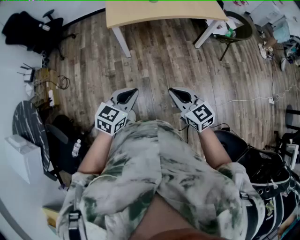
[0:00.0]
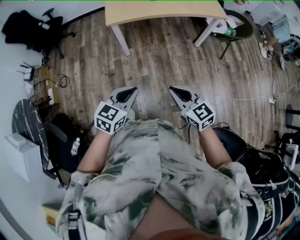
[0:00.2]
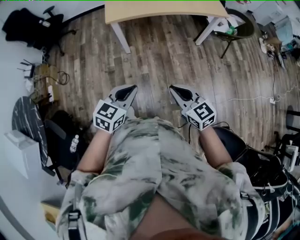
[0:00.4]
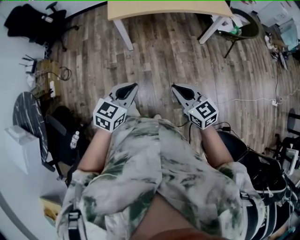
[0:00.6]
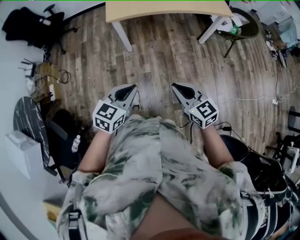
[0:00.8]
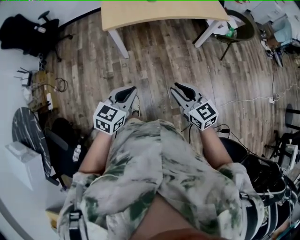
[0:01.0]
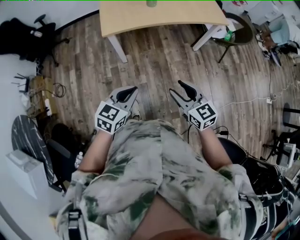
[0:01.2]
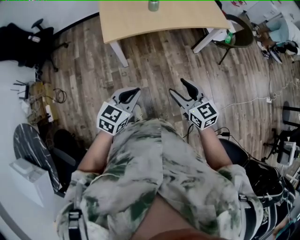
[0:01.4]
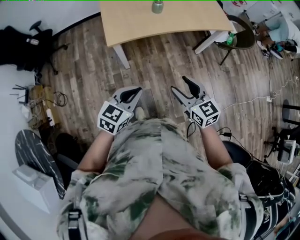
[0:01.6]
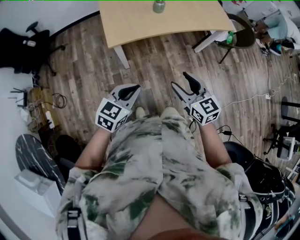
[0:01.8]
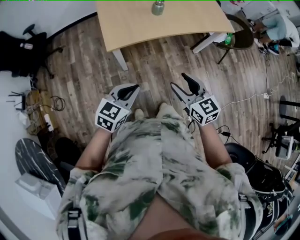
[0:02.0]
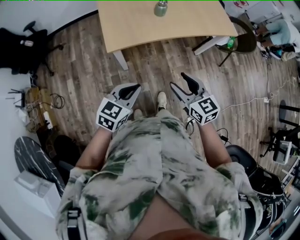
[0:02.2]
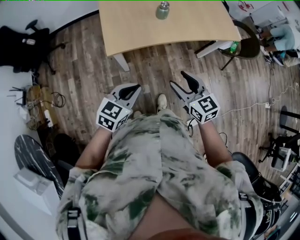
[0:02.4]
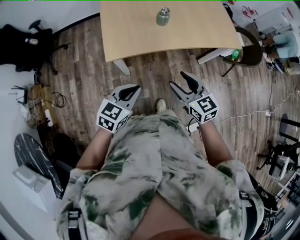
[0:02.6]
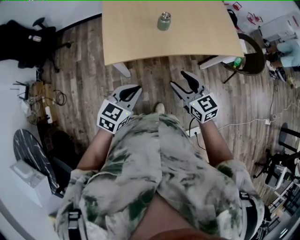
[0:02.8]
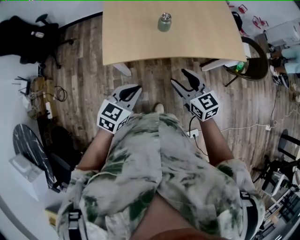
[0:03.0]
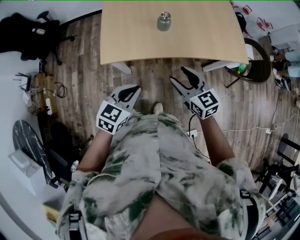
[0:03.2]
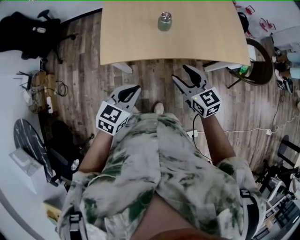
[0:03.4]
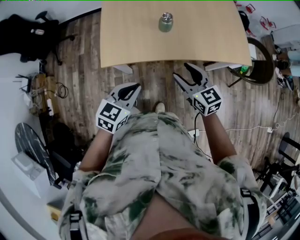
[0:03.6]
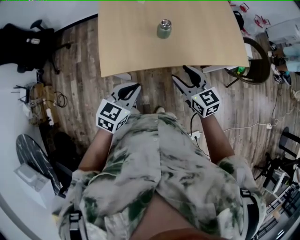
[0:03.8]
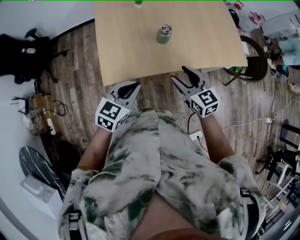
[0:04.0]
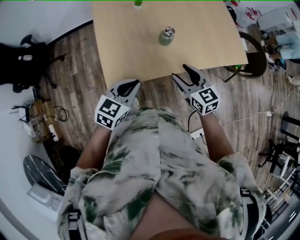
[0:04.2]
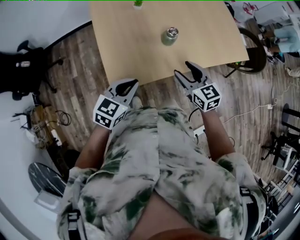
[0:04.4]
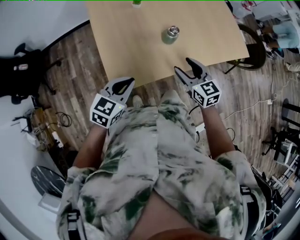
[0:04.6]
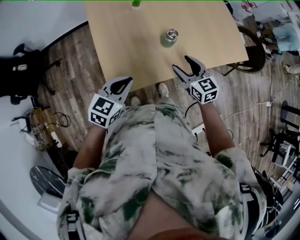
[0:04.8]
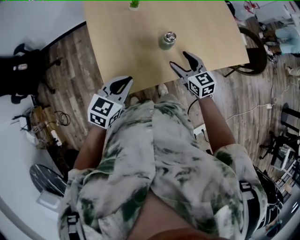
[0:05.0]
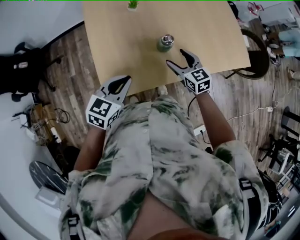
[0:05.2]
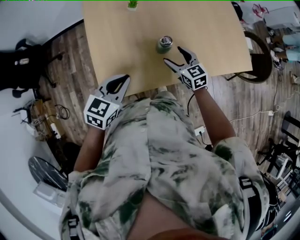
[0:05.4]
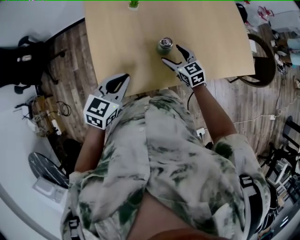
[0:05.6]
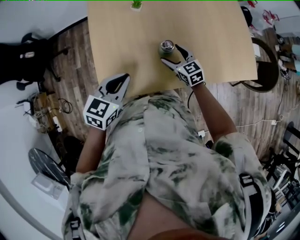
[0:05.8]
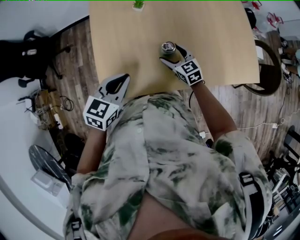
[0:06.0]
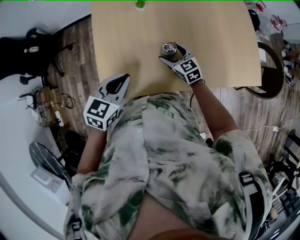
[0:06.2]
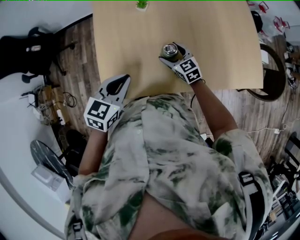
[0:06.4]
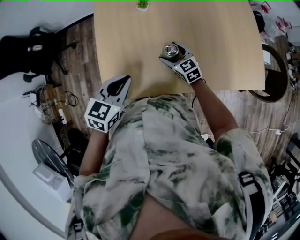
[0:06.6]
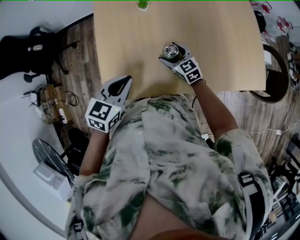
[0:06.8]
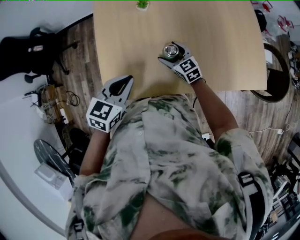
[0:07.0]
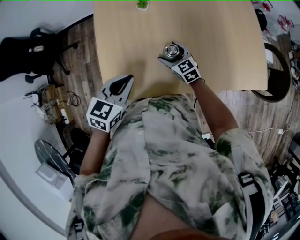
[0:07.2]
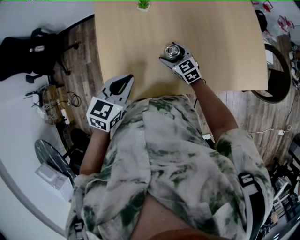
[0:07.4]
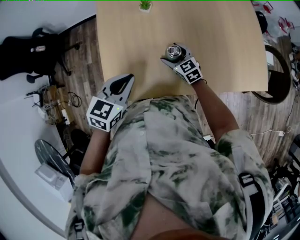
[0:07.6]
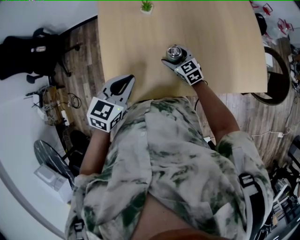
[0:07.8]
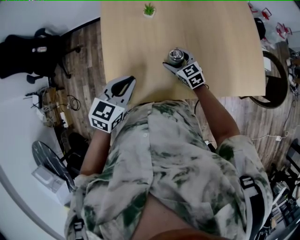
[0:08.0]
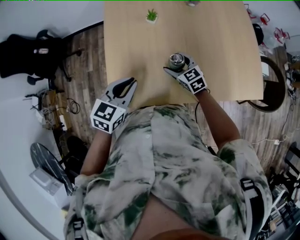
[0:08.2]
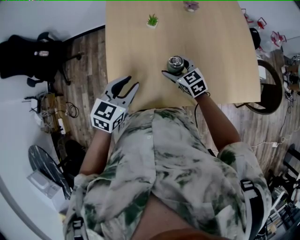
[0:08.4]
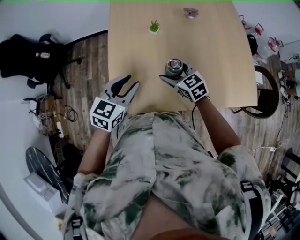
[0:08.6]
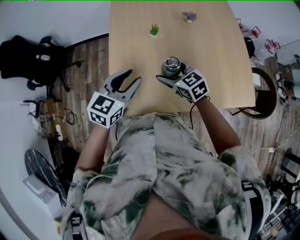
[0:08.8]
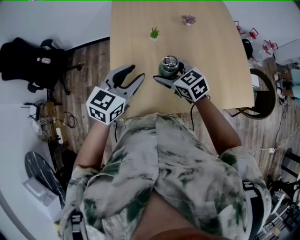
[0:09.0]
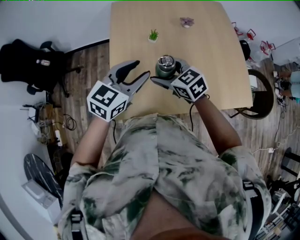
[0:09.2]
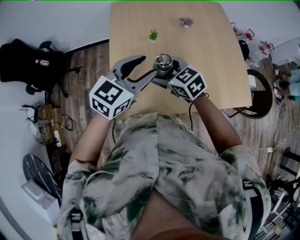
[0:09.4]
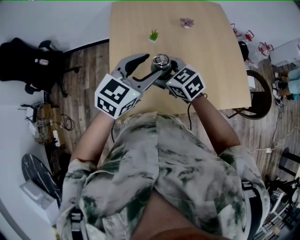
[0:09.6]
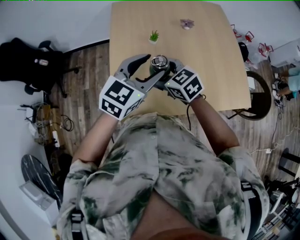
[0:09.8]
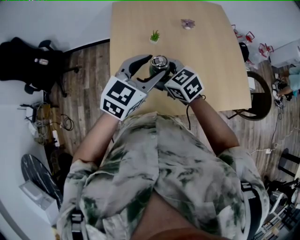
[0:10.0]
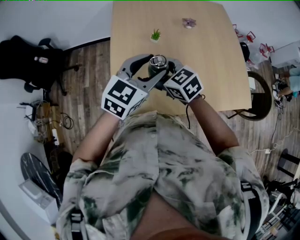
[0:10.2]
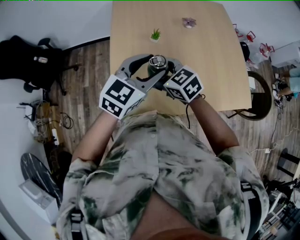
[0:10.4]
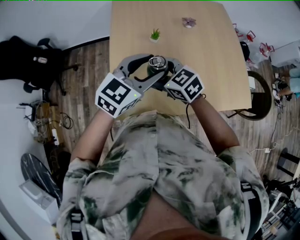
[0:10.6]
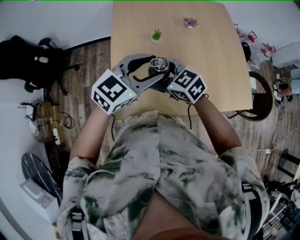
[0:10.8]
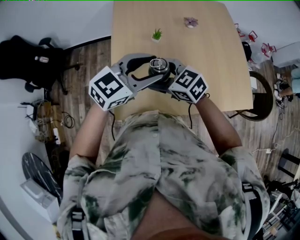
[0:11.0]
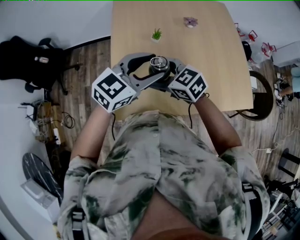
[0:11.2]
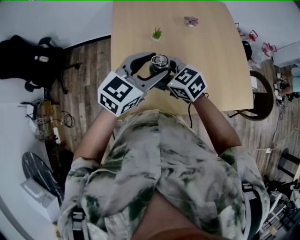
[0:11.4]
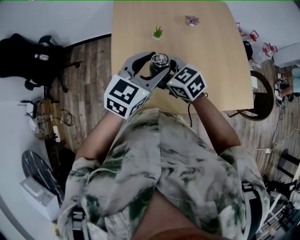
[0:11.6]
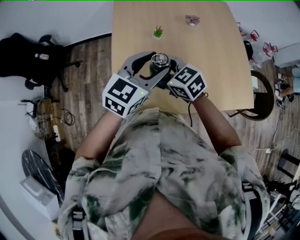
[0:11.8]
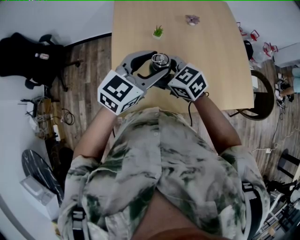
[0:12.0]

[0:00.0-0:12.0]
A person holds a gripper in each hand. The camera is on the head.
0:00.0 to 0:01.6: The two grippers go about 20 cm forward. The right gripper opens its fingers.
0:01.6 to 0:03.0: The grippers both shift forward by roughly 20 cm.
0:03.0 to 0:04.4: Both grippers travel together forward and to the left, some 20 cm.
0:04.4 to 0:06.0: The left gripper travels forward and to the right by approximately 15 cm, while the right gripper shifts some 25 cm forward and downward.
0:06.0 to 0:07.6: There are only small adjustments of the grippers.
0:07.6 to 0:09.0: The right gripper is displaced upward by approximately 20 cm; the left gripper moves upward, some 10 cm, and opens its fingers.
0:09.0 to 0:10.4: The right gripper is displaced to the left by some 5 cm, while the left gripper moves some 5 cm.
0:10.4 to 0:12.0: The grippers move only a little.

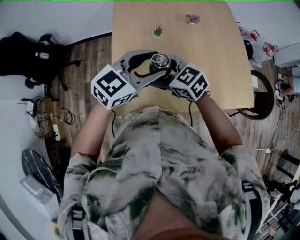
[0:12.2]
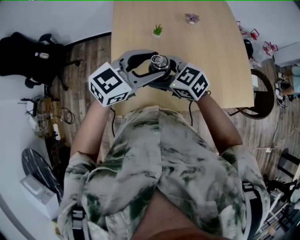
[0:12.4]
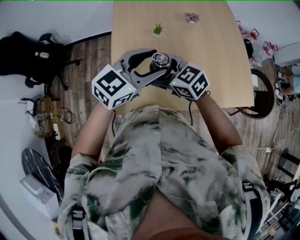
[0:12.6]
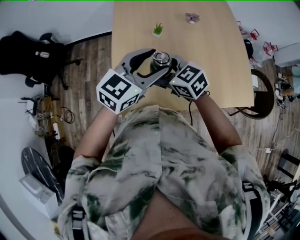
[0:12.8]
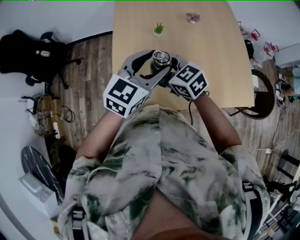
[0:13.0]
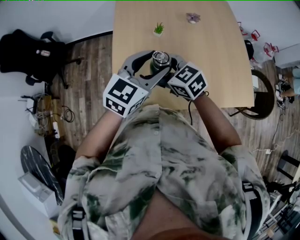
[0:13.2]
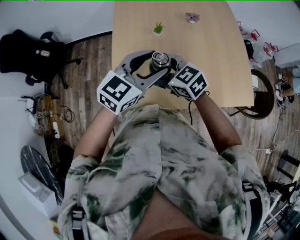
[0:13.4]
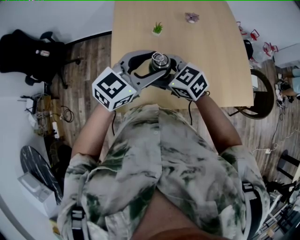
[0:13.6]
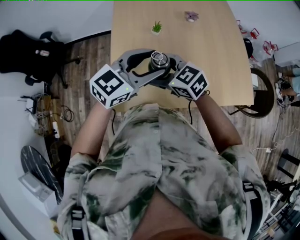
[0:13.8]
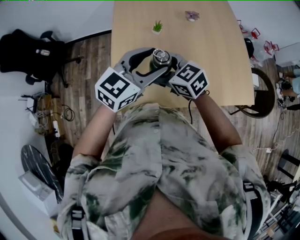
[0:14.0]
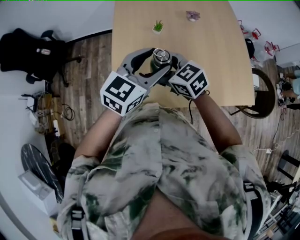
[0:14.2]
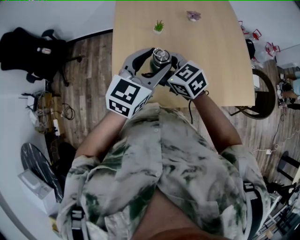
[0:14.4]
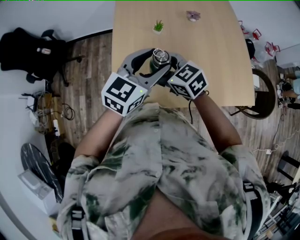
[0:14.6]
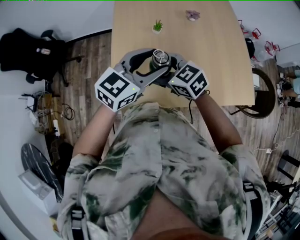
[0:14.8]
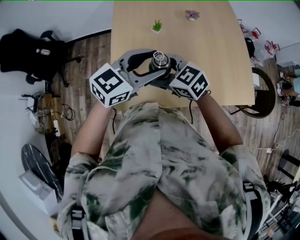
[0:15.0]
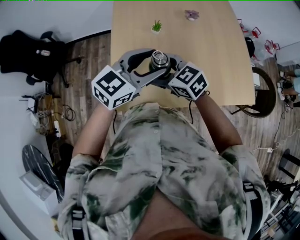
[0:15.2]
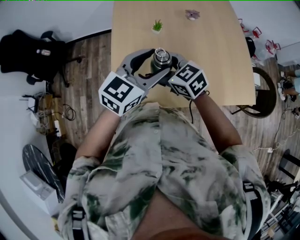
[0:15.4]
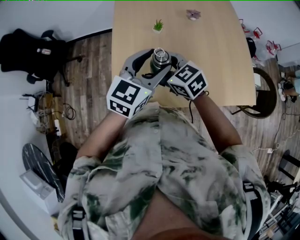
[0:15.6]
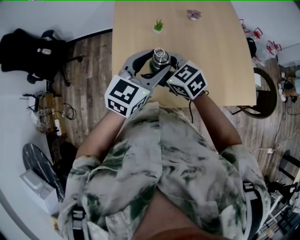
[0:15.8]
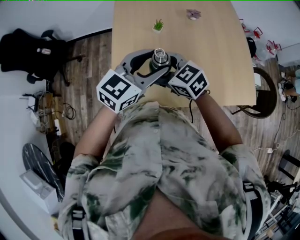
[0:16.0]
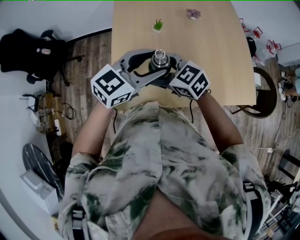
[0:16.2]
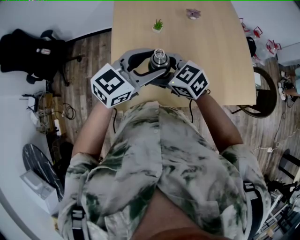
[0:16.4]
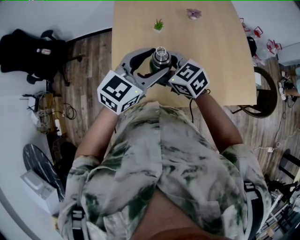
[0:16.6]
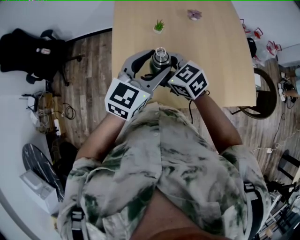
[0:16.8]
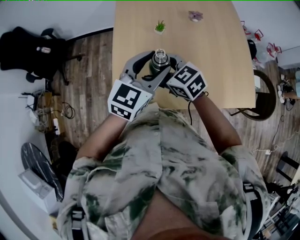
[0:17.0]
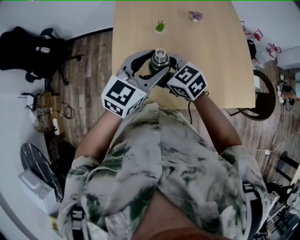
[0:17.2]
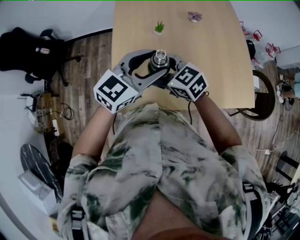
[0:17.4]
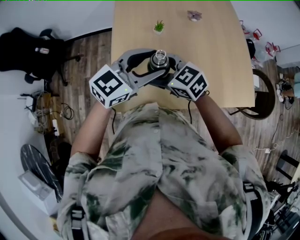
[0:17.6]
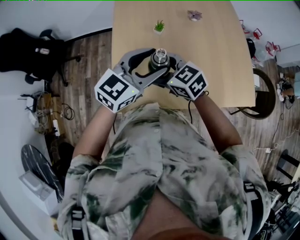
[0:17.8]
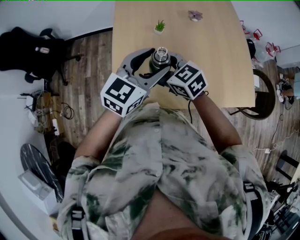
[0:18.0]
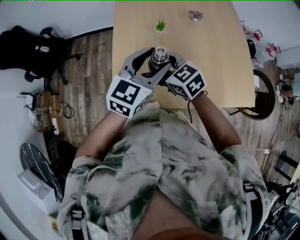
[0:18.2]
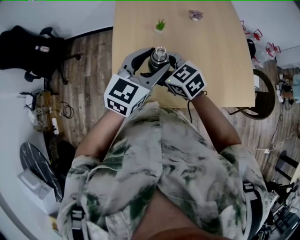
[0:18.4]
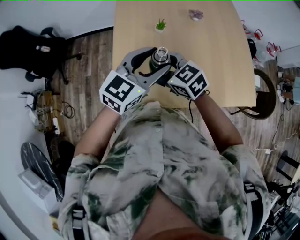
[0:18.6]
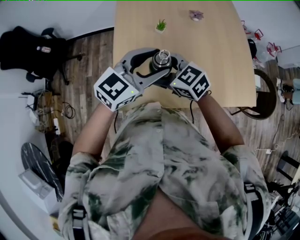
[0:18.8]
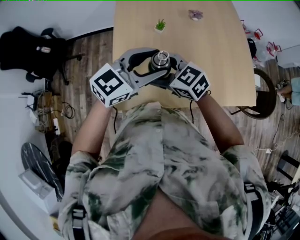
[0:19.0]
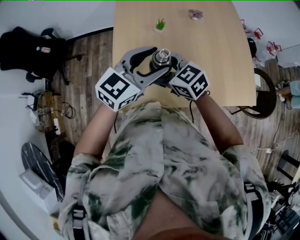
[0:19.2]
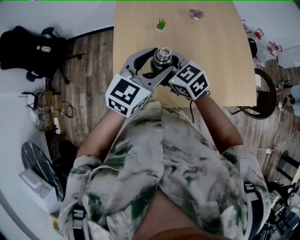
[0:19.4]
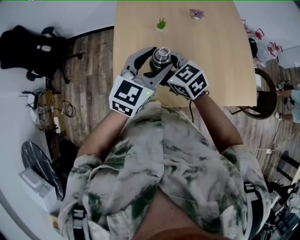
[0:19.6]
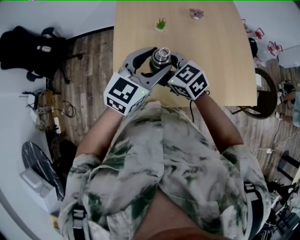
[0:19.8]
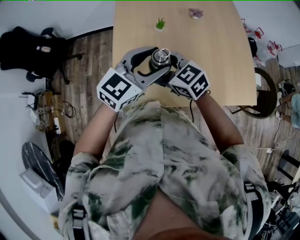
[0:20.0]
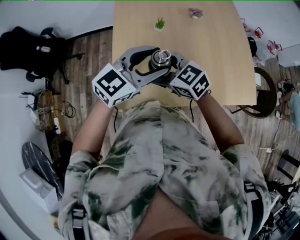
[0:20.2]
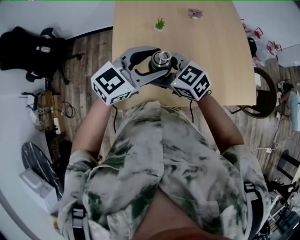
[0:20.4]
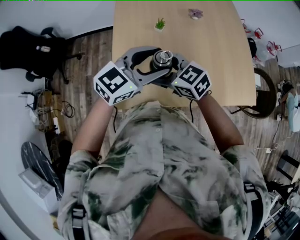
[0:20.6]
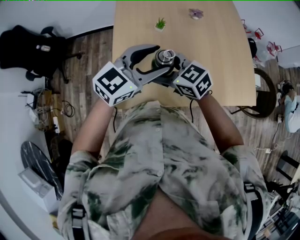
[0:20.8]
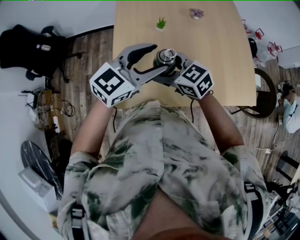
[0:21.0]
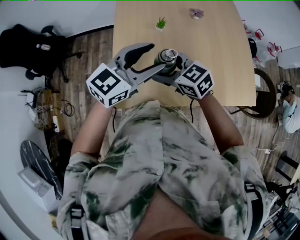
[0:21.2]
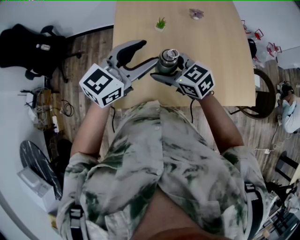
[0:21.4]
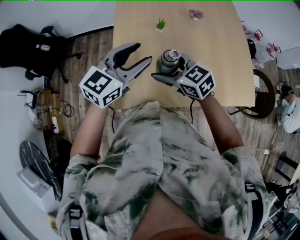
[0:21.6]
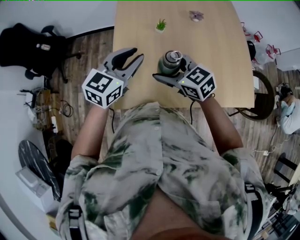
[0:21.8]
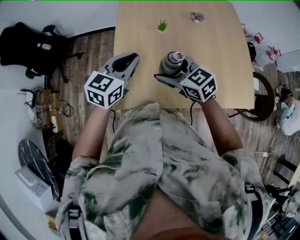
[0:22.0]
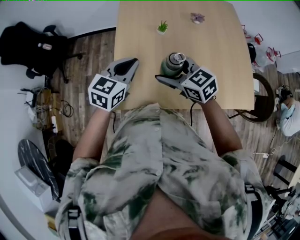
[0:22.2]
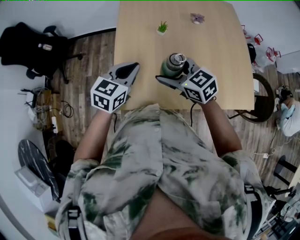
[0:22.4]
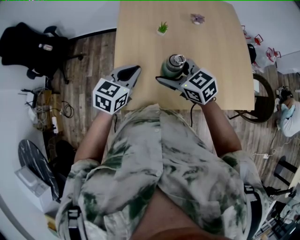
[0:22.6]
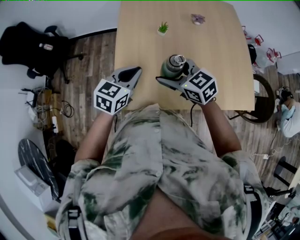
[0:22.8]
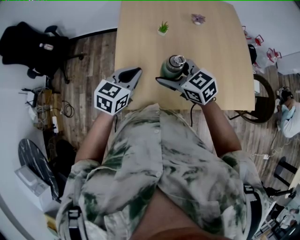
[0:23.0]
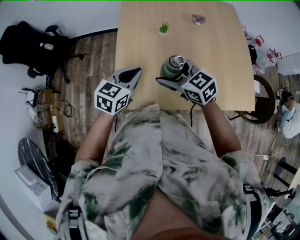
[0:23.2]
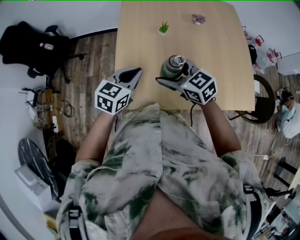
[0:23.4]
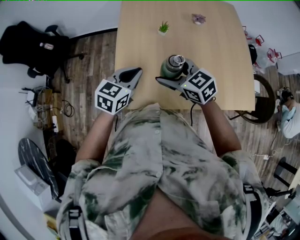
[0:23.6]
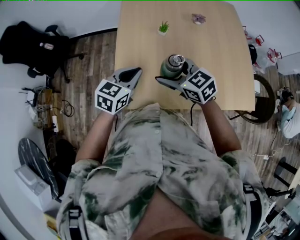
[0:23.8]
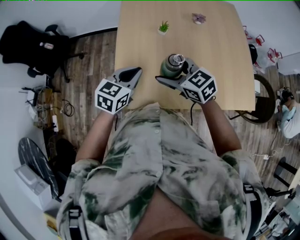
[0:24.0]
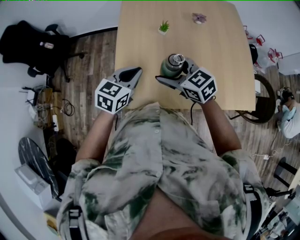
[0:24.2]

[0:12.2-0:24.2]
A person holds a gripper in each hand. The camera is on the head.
0:12.2 to 0:13.8: The grippers move only a little.
0:13.8 to 0:16.6: There are only small adjustments of the grippers.
0:16.6 to 0:18.2: There are only small adjustments of the grippers.
0:19.8 to 0:21.2: There are only small adjustments of the grippers.
0:21.2 to 0:22.6: The left gripper shifts roughly 15 cm downward and to the left, turns by approximately 30 degrees, and closes its fingers.
0:22.6 to 0:24.2: There are only small adjustments of the grippers.
